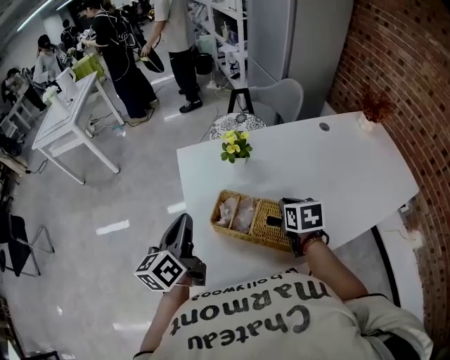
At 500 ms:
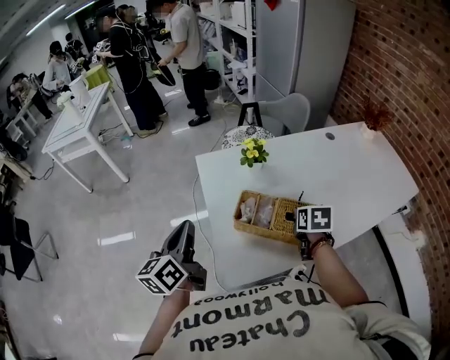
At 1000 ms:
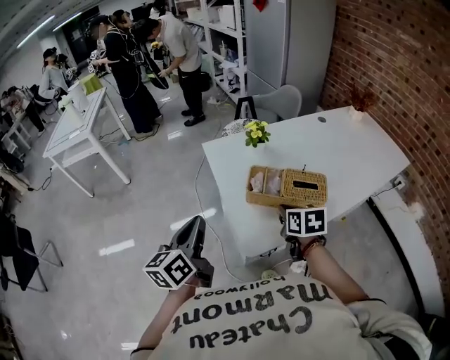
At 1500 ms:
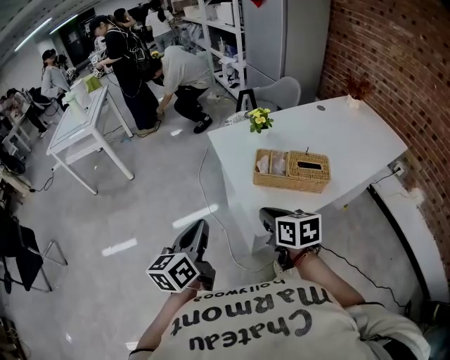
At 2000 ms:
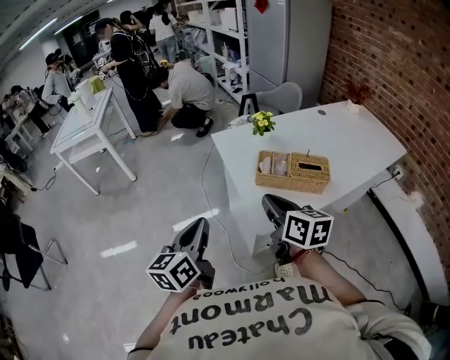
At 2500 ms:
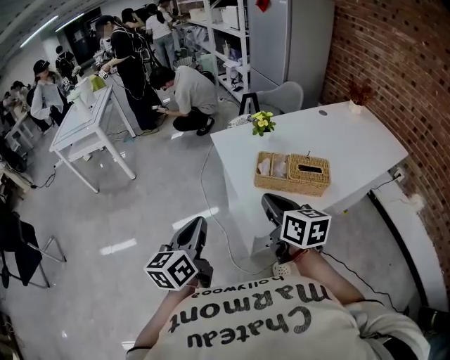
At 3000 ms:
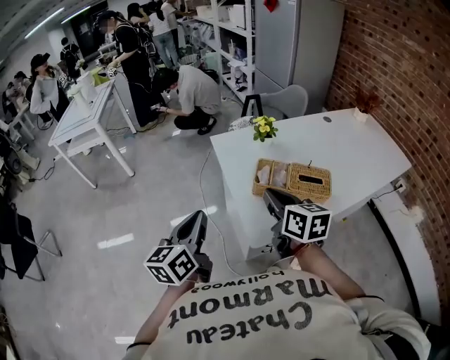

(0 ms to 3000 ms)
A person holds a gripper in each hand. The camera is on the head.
0 ms - 1500 ms: The right gripper heads to the left and backward, covering some 35 cm, and changes its angle by roughly 20 degrees. The left gripper is displaced backward and to the left by roughly 25 cm.
1500 ms - 3000 ms: The left gripper shifts by roughly 5 cm; the right gripper goes approximately 10 cm forward and upward.

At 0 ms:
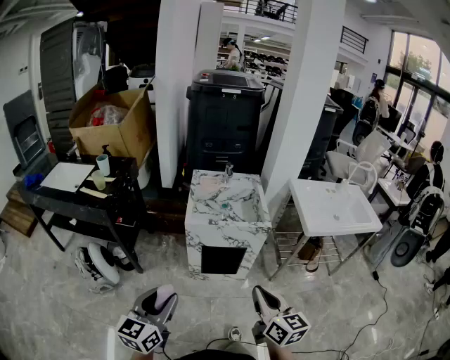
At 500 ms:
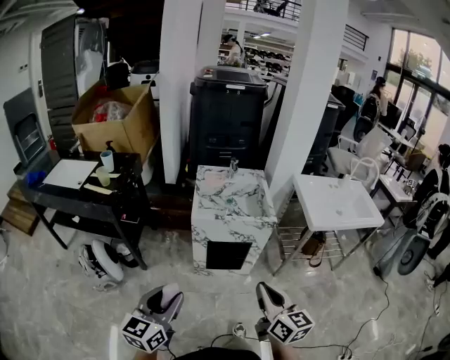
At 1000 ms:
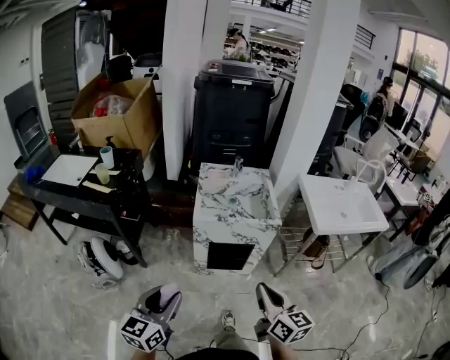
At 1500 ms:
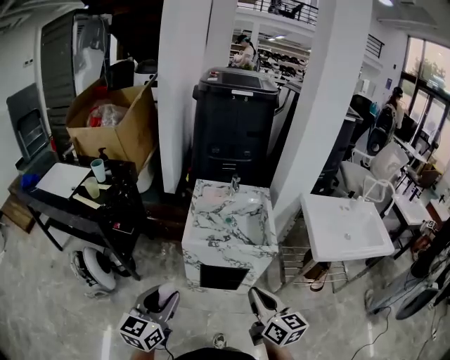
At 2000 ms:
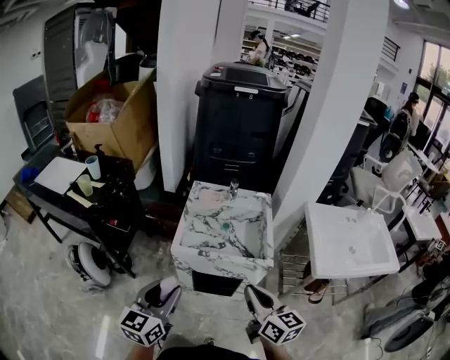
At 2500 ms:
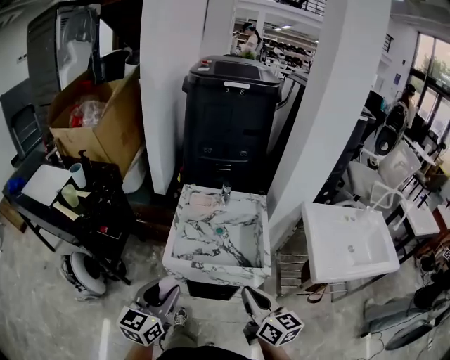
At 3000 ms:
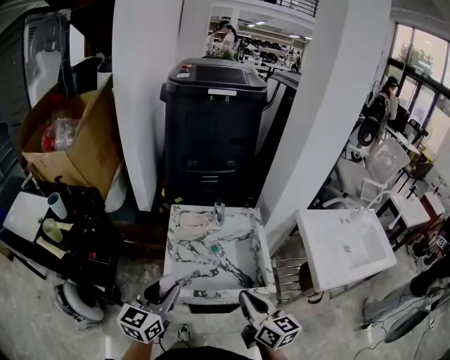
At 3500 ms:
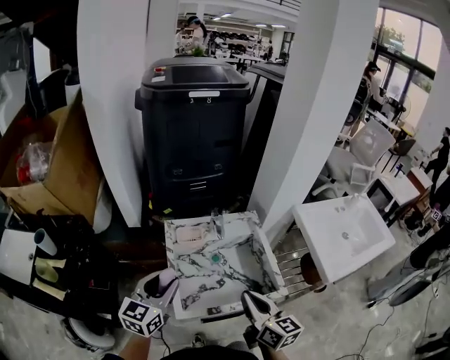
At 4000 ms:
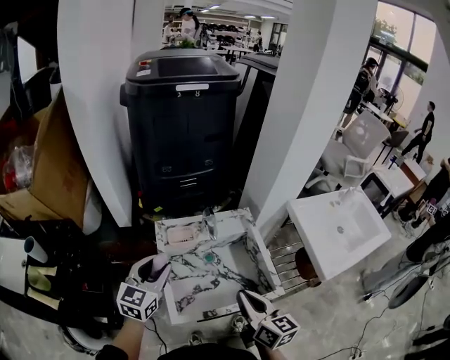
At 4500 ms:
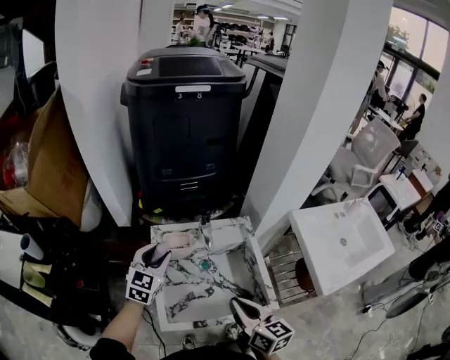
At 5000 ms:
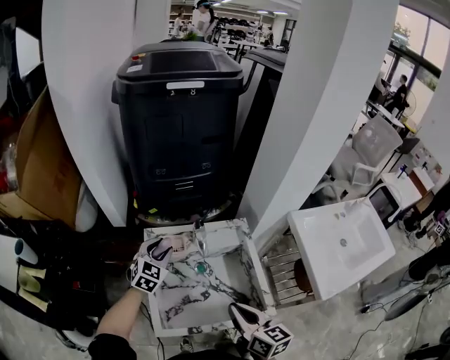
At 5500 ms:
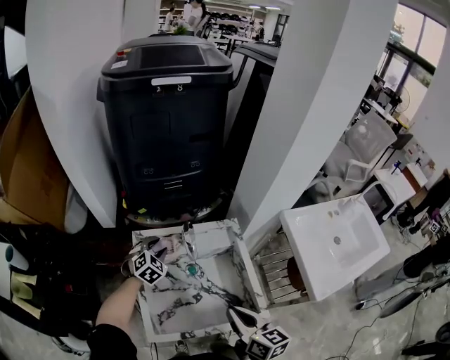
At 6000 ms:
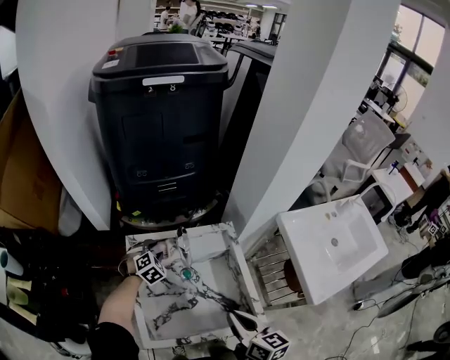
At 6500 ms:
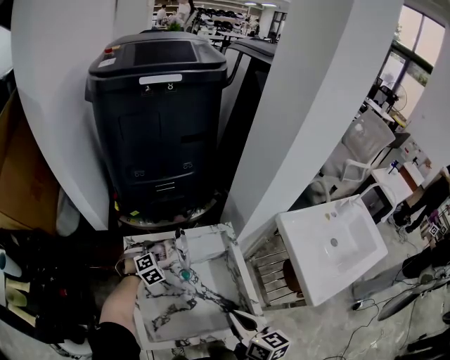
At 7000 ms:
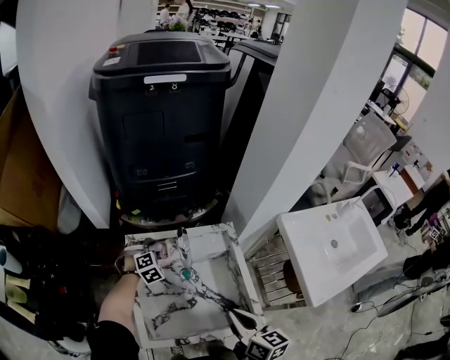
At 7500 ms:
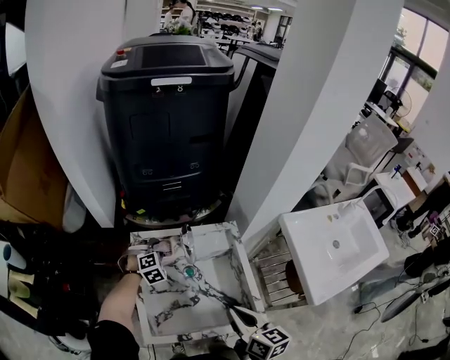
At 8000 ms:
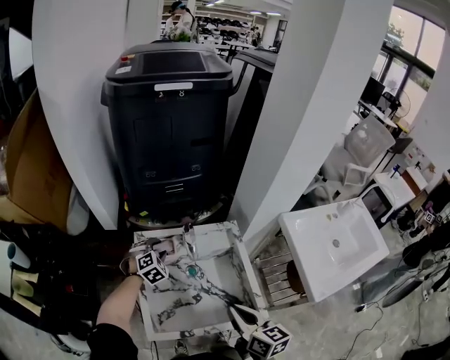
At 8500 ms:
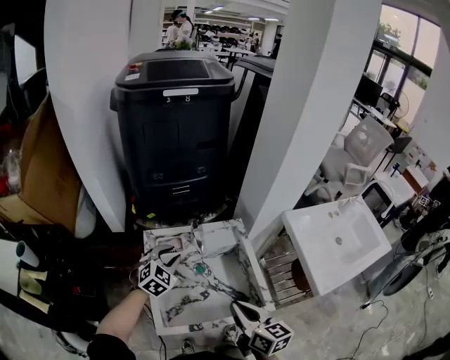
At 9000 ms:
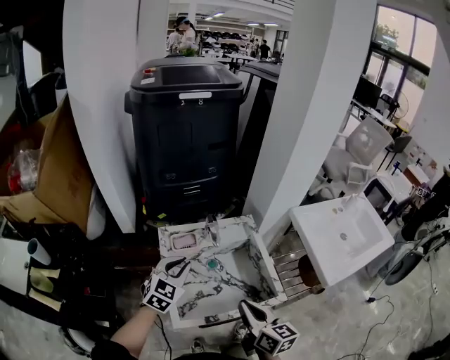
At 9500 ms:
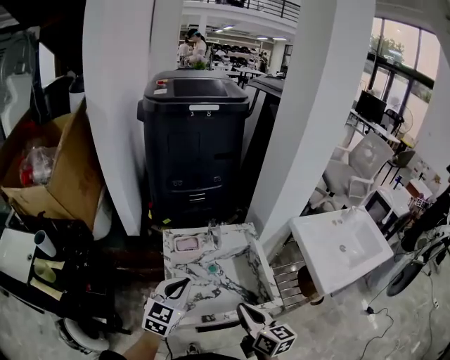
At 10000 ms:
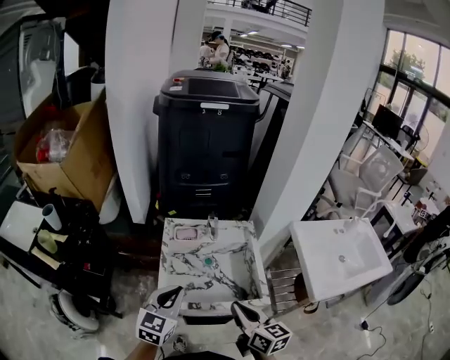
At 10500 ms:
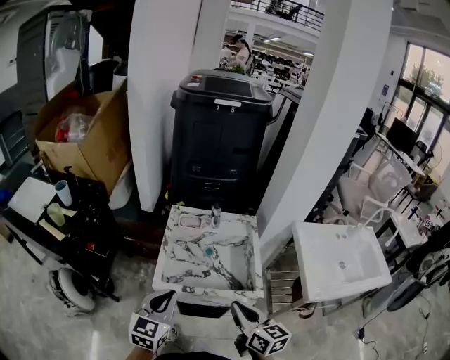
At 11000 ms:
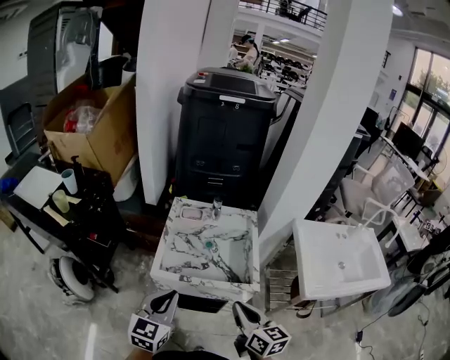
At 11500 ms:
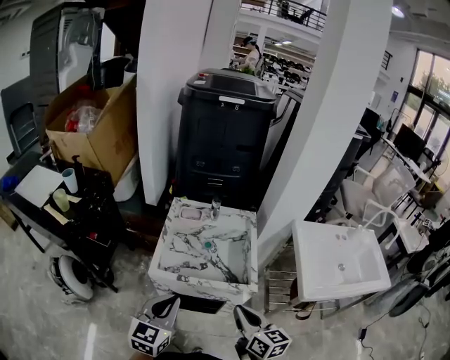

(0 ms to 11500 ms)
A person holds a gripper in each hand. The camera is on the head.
0 ms - 2000 ms: Both grippers travel together forward, about 20 cm.
2000 ms - 4000 ms: The right gripper is displaced forward by approximately 20 cm, and changes its angle by some 20 degrees, while the left gripper goes about 40 cm forward, and rotates approximately 20 degrees.
4000 ms - 6000 ms: The right gripper heads to the right and downward, covering about 10 cm, while the left gripper moves downward and forward, some 30 cm, and angles its fingers downward, by some 40 degrees.
6000 ms - 7500 ms: There are only small adjustments of the grippers.
7500 ms - 9500 ms: The right gripper shifts about 10 cm backward, to the left and upward, while the left gripper moves backward and upward, approximately 30 cm, angles its fingers upward, by some 40 degrees, and closes.
9500 ms - 11500 ms: The right gripper is displaced backward and to the right by some 15 cm. Meanwhile the left gripper travels backward by about 25 cm, and swivels roughly 20 degrees.

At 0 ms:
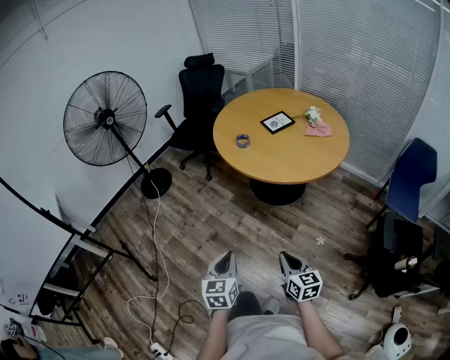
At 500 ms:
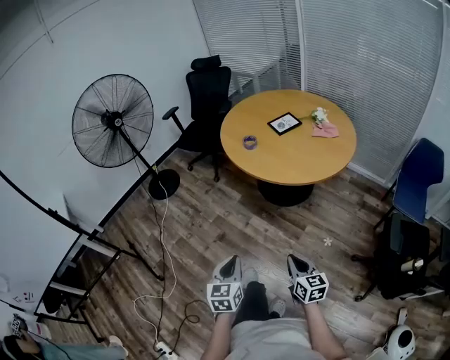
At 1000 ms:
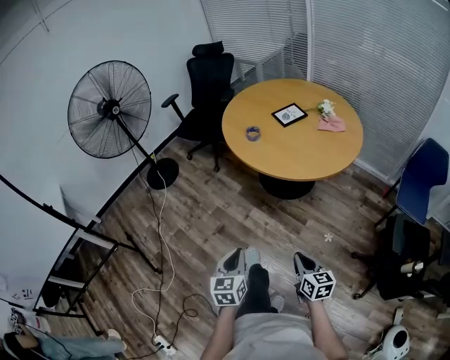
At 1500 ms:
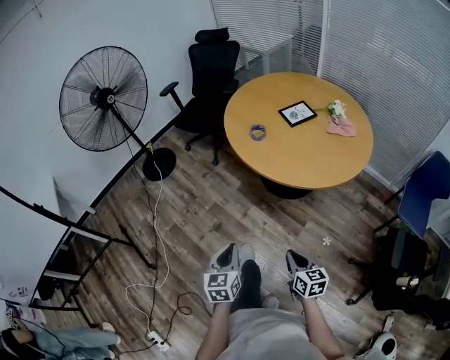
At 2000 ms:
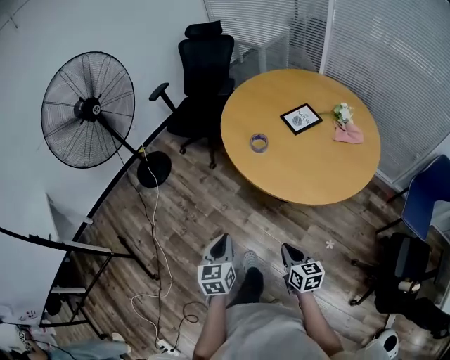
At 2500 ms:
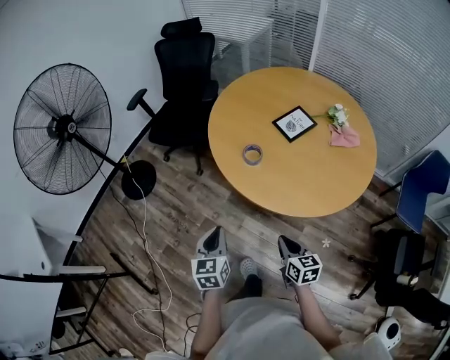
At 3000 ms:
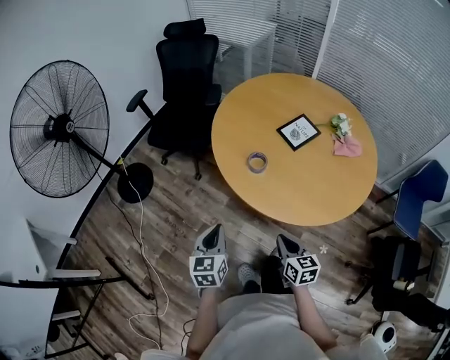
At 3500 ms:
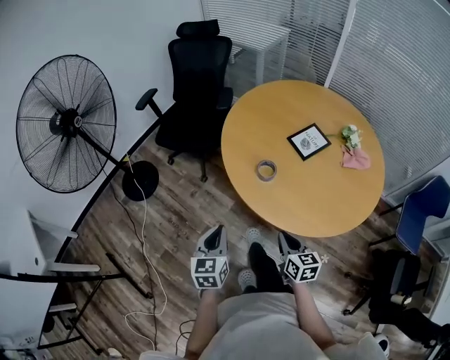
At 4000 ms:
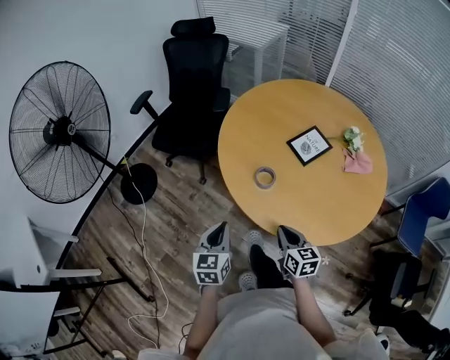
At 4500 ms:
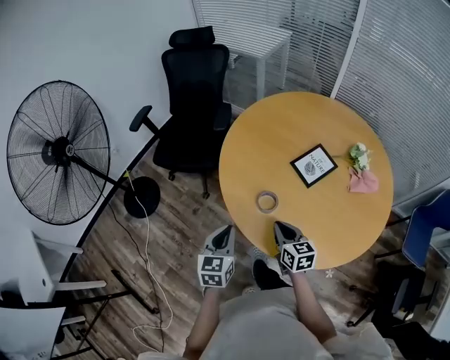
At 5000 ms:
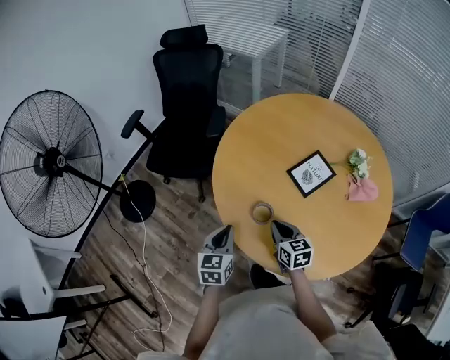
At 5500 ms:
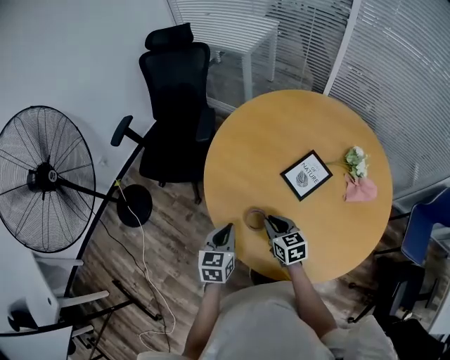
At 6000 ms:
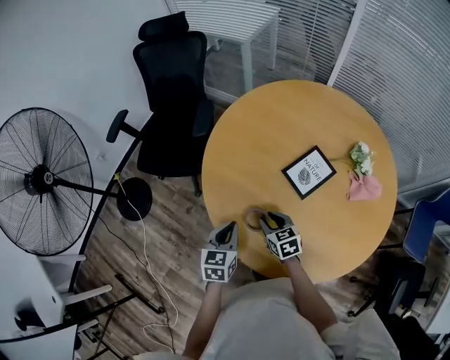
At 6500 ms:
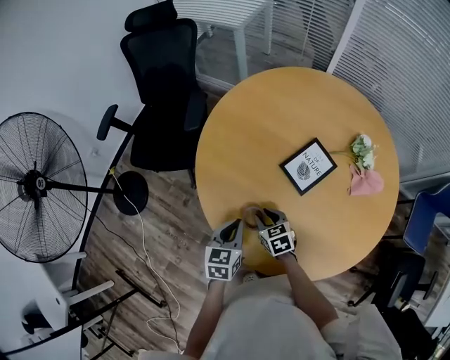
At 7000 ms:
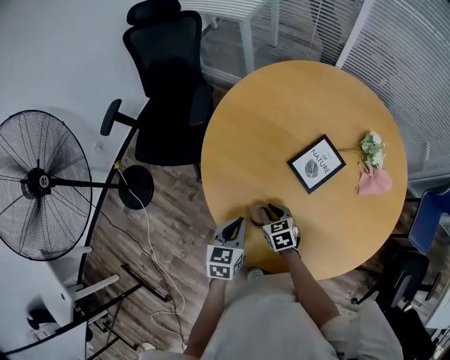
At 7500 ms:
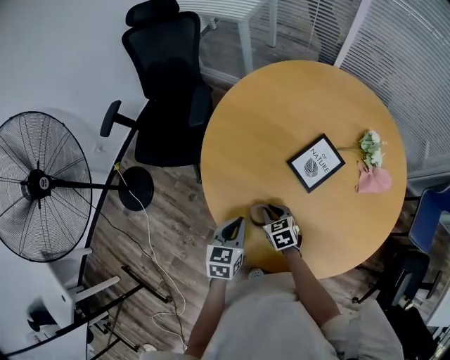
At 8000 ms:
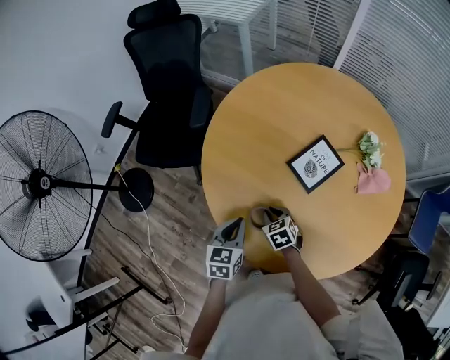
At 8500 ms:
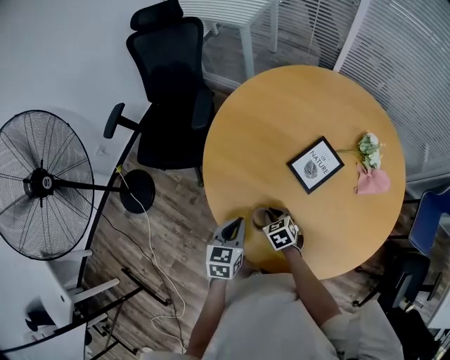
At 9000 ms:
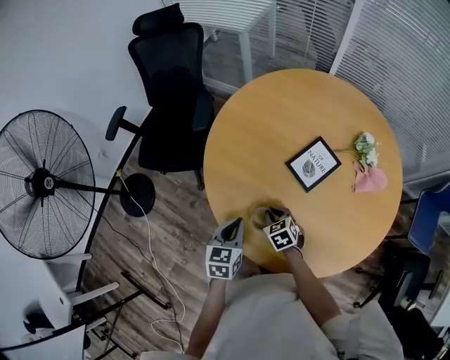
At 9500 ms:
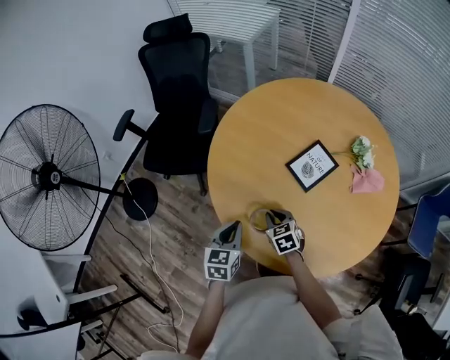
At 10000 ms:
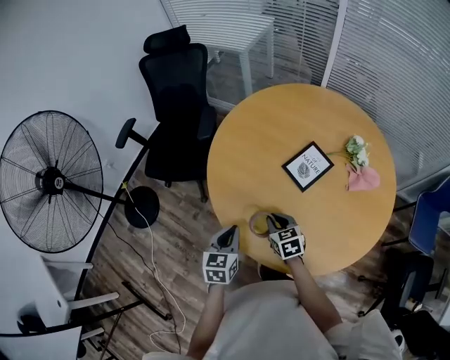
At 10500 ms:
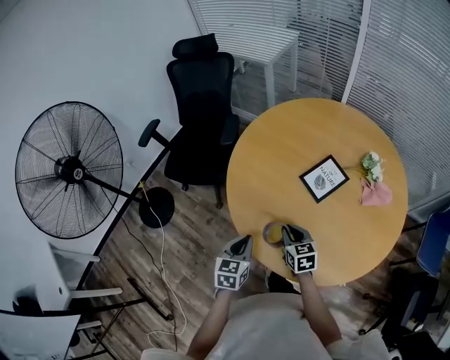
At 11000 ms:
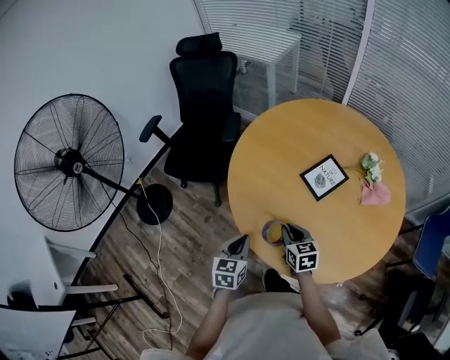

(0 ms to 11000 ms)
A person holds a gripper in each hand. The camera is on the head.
0 ms - 2000 ms: Both grippers move forward, about 25 cm.
2000 ms - 3500 ms: The two grippers go about 20 cm forward.
3500 ms - 5500 ms: The left gripper is displaced forward and to the right by approximately 30 cm; the right gripper travels forward by about 30 cm.
5500 ms - 7500 ms: The right gripper heads downward, covering roughly 10 cm. The left gripper changes place by some 5 cm.
7500 ms - 9000 ms: The grippers make only small movements.
9000 ms - 11000 ms: The left gripper heads backward, covering about 10 cm. The right gripper goes roughly 15 cm upward and backward, and turns by approximately 20 degrees.

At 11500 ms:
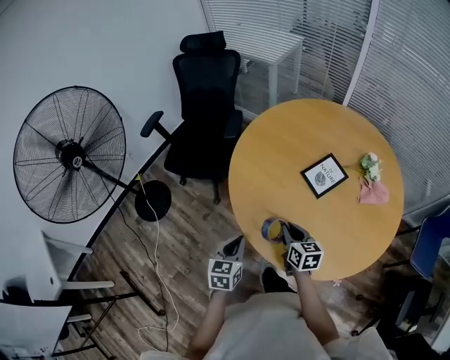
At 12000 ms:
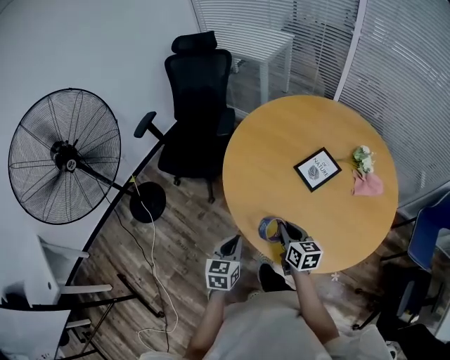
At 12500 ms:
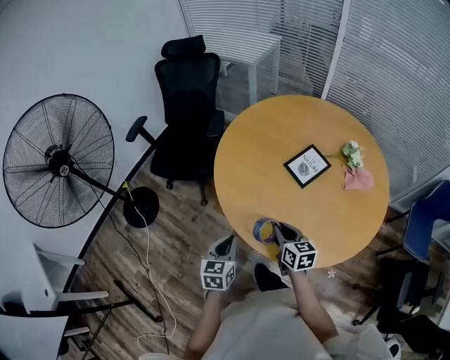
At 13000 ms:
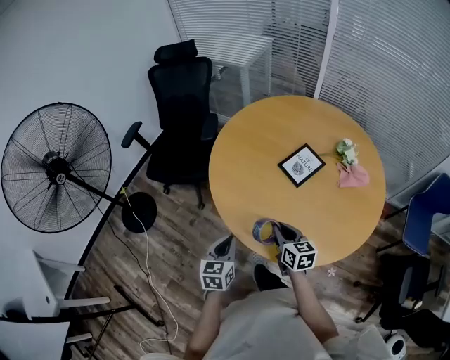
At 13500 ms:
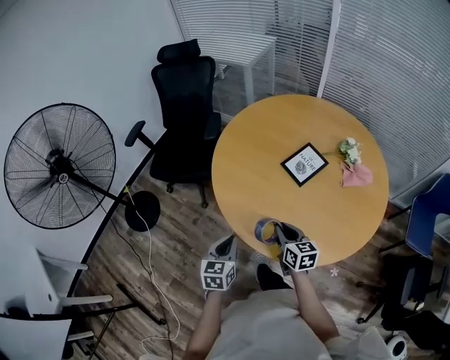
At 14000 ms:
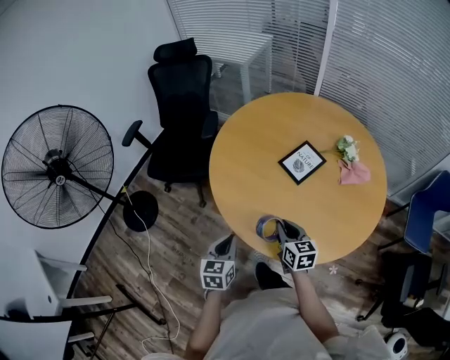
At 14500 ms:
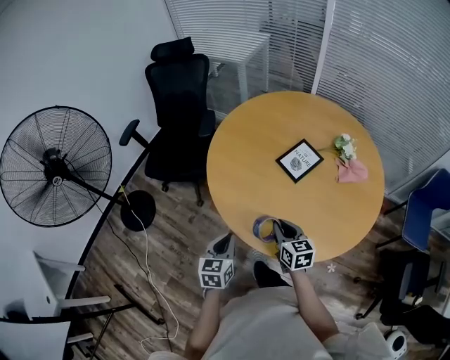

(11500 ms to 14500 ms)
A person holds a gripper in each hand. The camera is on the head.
11500 ms - 13000 ms: The right gripper shifts some 5 cm backward.
13000 ms - 14500 ms: The grippers move only a little.
